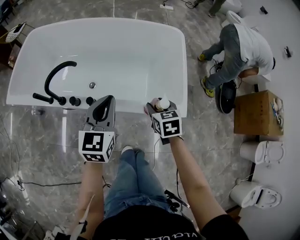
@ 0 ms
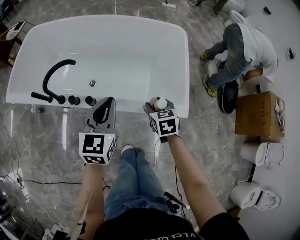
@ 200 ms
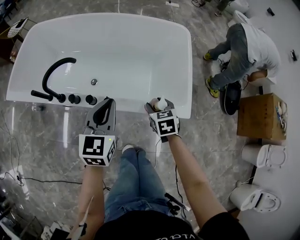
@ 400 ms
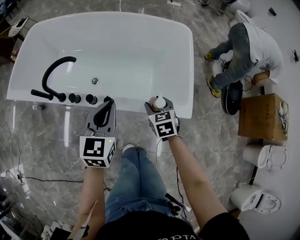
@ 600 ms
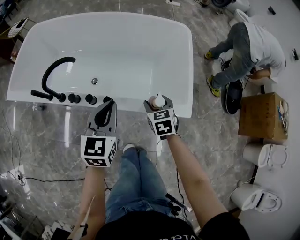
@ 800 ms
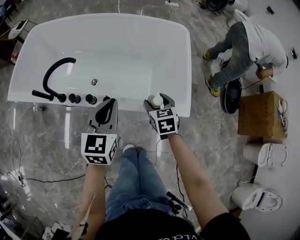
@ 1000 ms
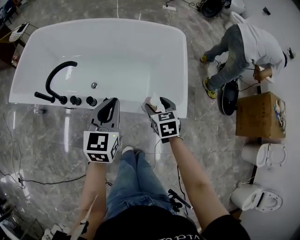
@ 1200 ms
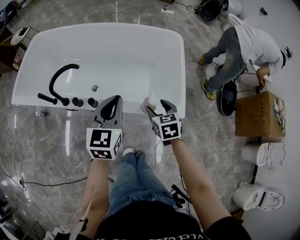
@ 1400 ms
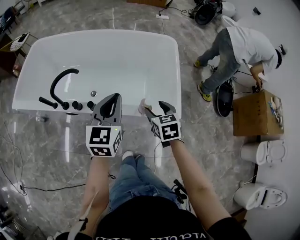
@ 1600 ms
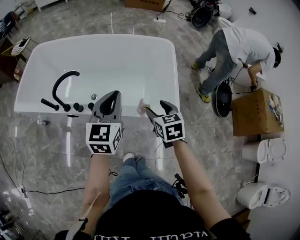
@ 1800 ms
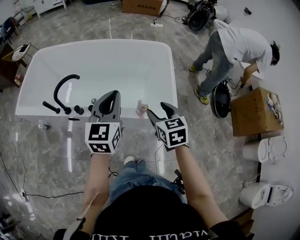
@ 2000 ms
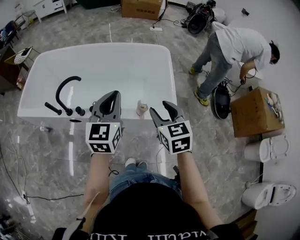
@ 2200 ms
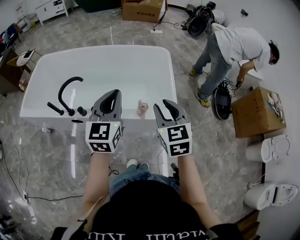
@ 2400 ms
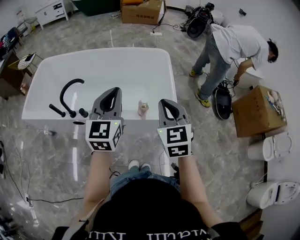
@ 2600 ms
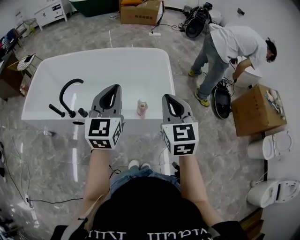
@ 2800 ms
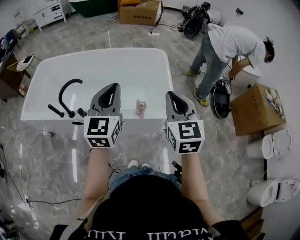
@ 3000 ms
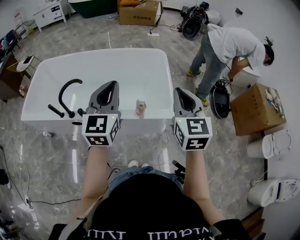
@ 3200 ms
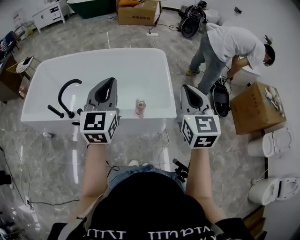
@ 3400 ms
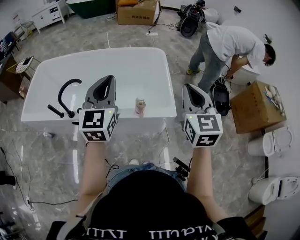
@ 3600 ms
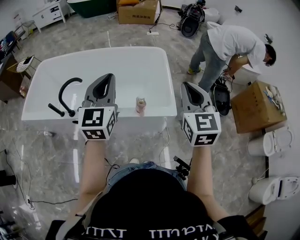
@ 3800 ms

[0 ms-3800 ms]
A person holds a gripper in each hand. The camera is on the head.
1200 ms to 2600 ms: The left gripper is displaced upward and backward by some 20 cm; the right gripper is displaced upward and backward by roughly 30 cm, swivels approximately 30 degrees, and closes up.
2600 ms to 3800 ms: The right gripper moves to the right and upward, about 10 cm.

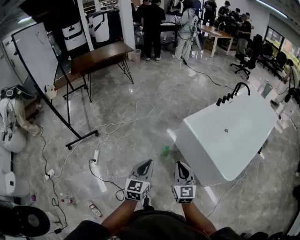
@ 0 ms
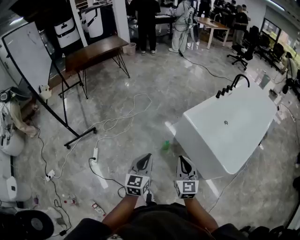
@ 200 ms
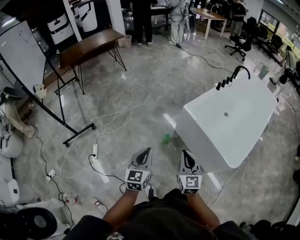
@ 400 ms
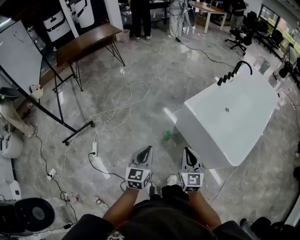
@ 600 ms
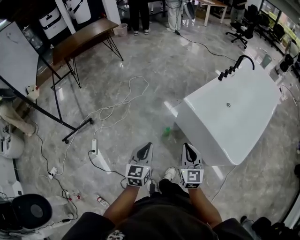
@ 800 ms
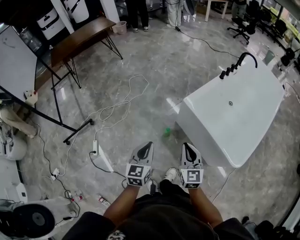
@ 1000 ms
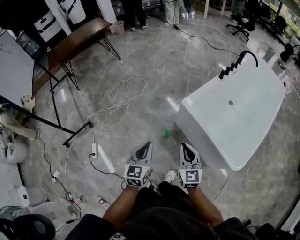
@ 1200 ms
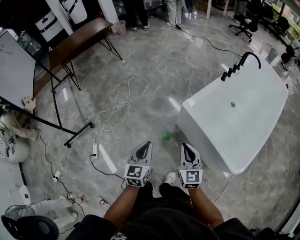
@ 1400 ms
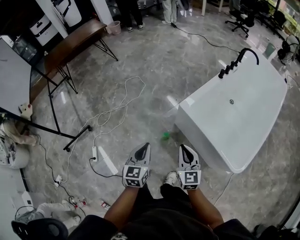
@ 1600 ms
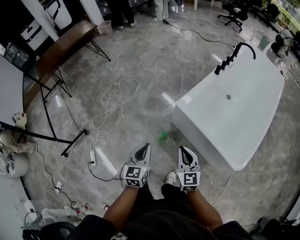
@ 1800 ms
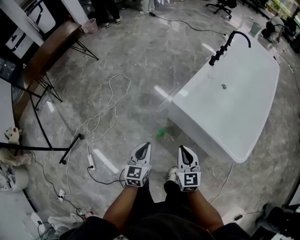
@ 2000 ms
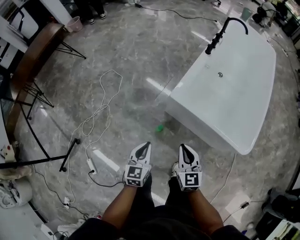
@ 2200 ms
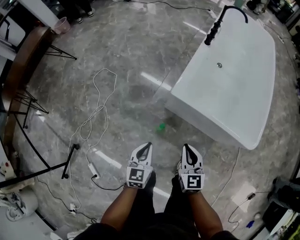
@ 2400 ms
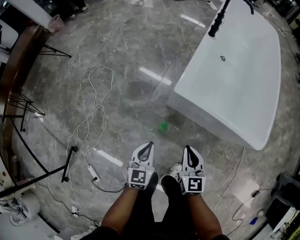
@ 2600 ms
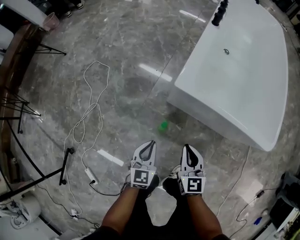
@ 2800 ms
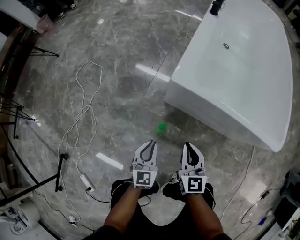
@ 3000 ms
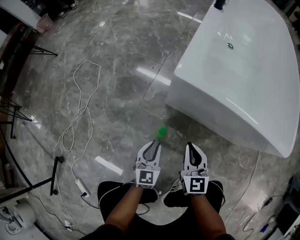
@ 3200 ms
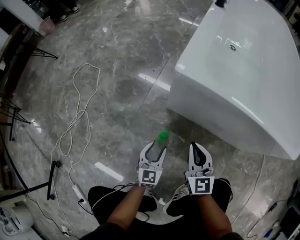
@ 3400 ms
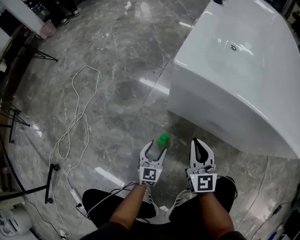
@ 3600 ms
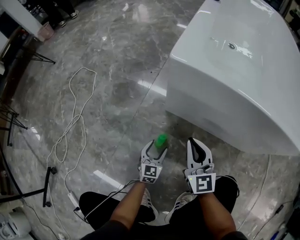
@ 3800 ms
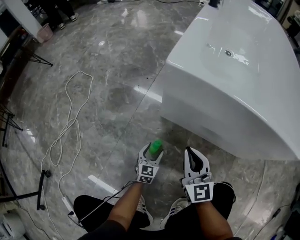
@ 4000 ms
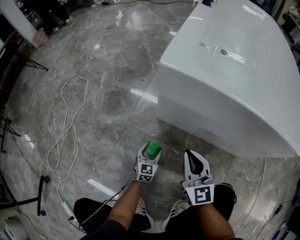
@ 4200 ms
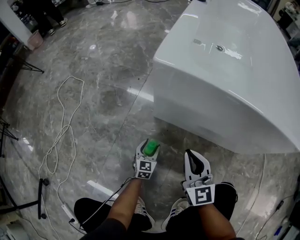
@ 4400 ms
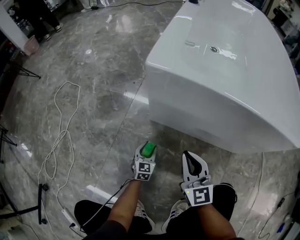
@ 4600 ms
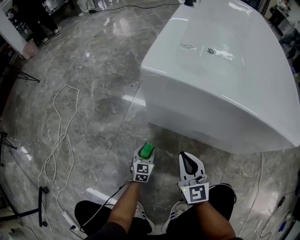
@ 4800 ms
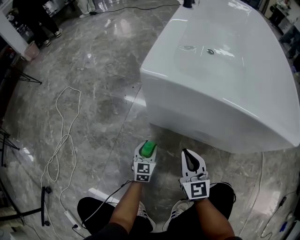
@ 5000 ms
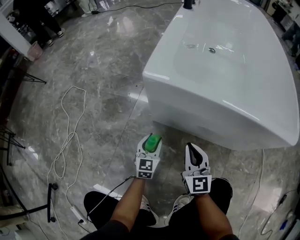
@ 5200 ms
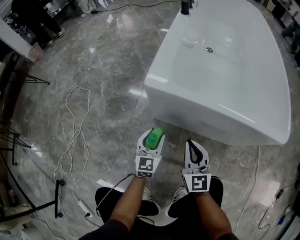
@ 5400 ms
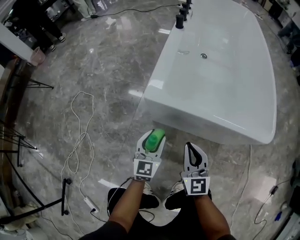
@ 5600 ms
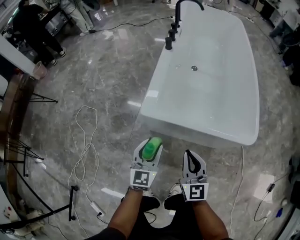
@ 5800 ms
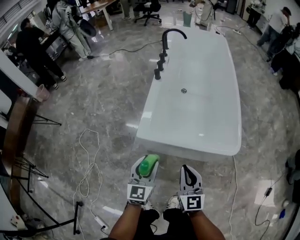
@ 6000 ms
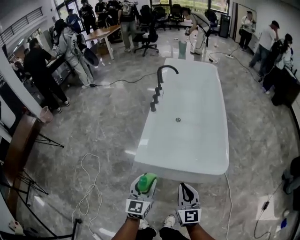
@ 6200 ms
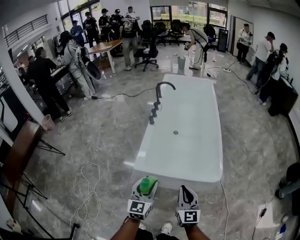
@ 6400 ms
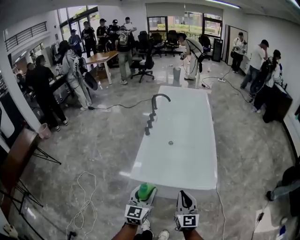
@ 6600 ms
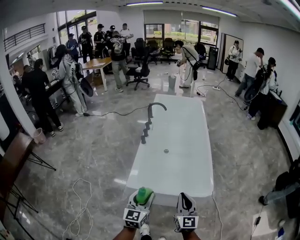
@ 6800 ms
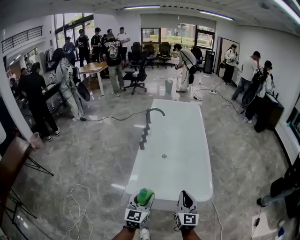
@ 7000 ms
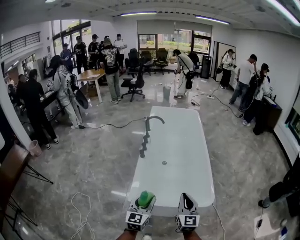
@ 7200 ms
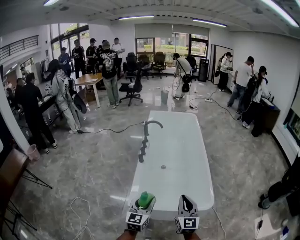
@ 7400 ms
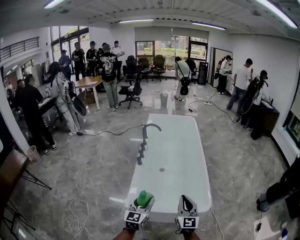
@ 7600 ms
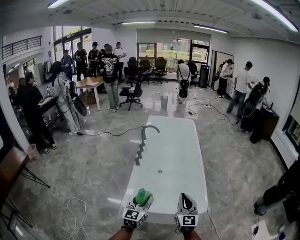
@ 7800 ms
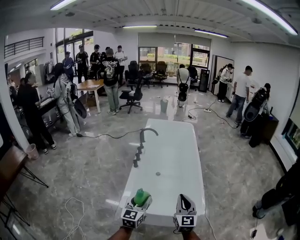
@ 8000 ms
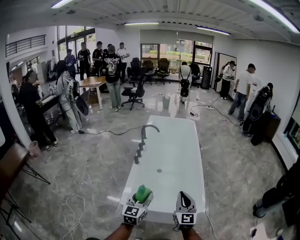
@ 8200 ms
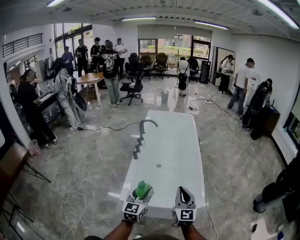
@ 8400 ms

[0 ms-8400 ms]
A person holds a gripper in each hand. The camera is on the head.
0 ms to 1400 ms: The two grippers go about 25 cm forward.
1400 ms to 2800 ms: The grippers both shift downward by approximately 35 cm. The left gripper changes its angle by approximately 30 degrees. The right gripper changes its angle by some 30 degrees.
2800 ms to 4200 ms: The right gripper heads downward, covering some 25 cm. The left gripper goes roughly 50 cm downward, and opens.
4200 ms to 5600 ms: The left gripper goes some 40 cm upward, while the right gripper shifts approximately 25 cm upward.
5600 ms to 7000 ms: The left gripper goes some 50 cm upward, while the right gripper shifts approximately 50 cm upward and to the right, and changes its angle by roughly 20 degrees.
7000 ms to 8400 ms: Both grippers travel together upward, approximately 5 cm.

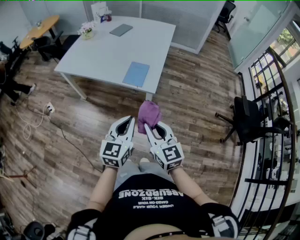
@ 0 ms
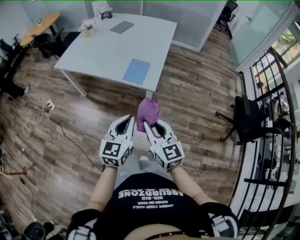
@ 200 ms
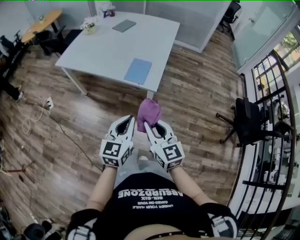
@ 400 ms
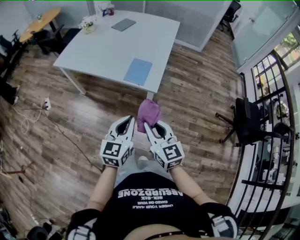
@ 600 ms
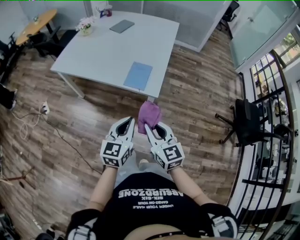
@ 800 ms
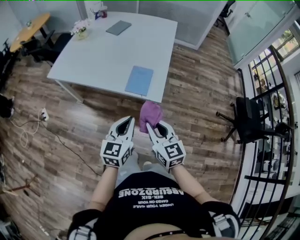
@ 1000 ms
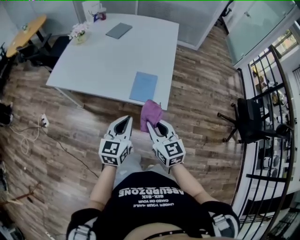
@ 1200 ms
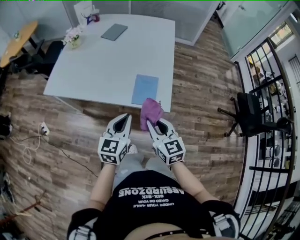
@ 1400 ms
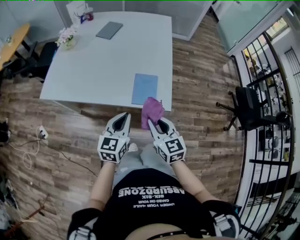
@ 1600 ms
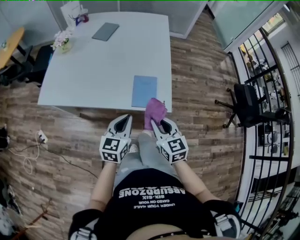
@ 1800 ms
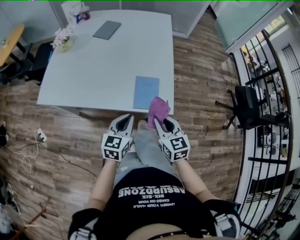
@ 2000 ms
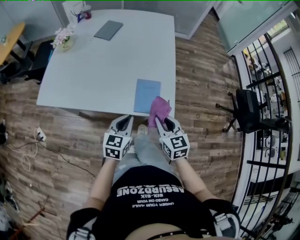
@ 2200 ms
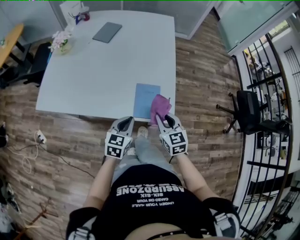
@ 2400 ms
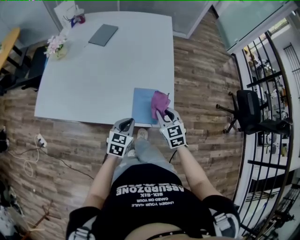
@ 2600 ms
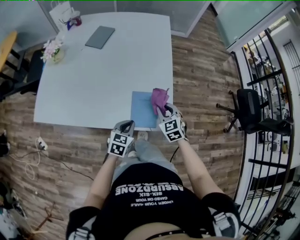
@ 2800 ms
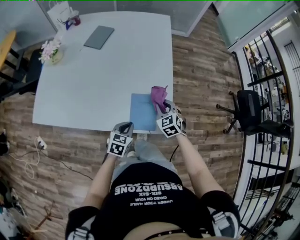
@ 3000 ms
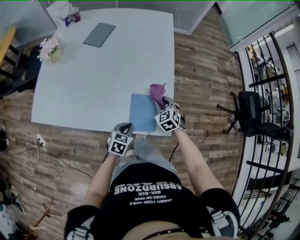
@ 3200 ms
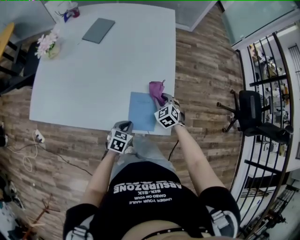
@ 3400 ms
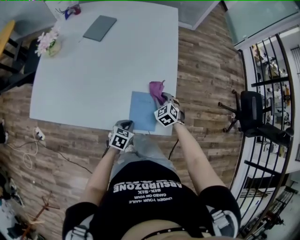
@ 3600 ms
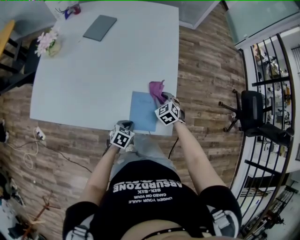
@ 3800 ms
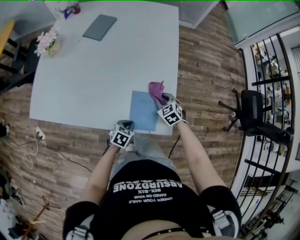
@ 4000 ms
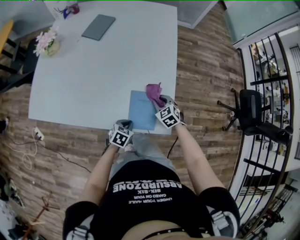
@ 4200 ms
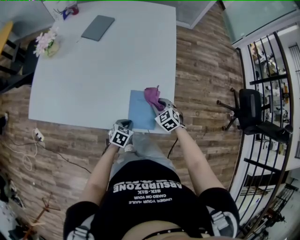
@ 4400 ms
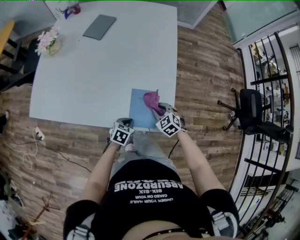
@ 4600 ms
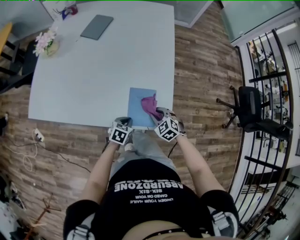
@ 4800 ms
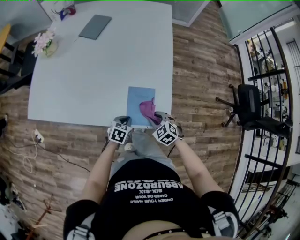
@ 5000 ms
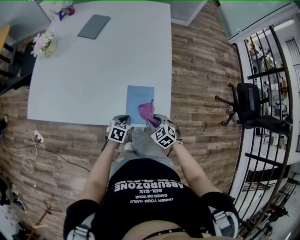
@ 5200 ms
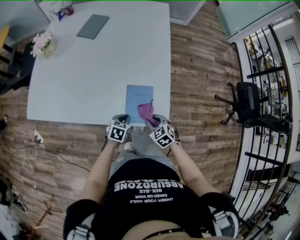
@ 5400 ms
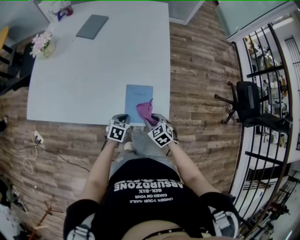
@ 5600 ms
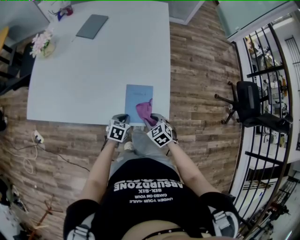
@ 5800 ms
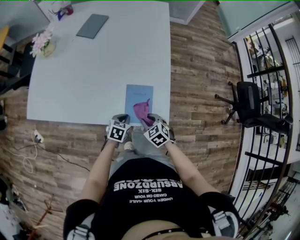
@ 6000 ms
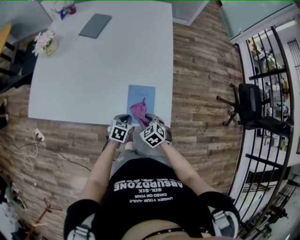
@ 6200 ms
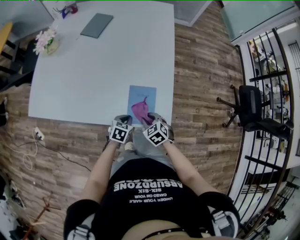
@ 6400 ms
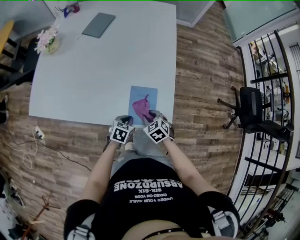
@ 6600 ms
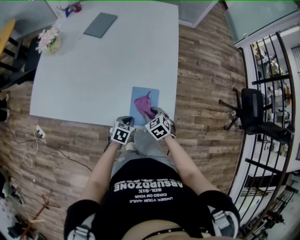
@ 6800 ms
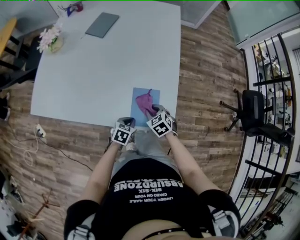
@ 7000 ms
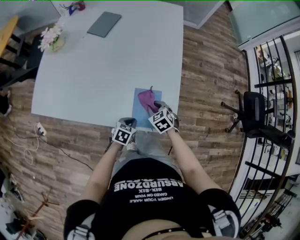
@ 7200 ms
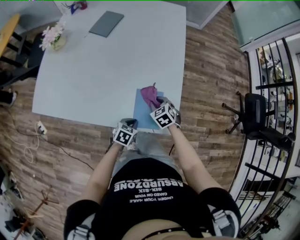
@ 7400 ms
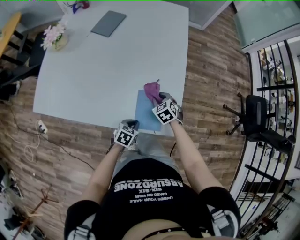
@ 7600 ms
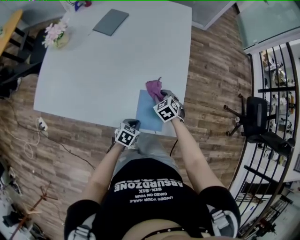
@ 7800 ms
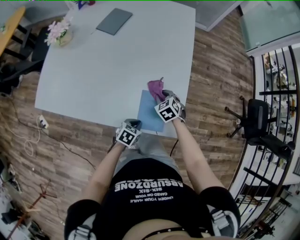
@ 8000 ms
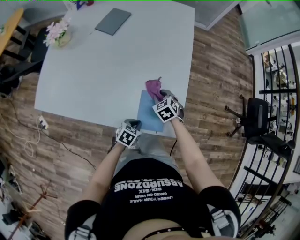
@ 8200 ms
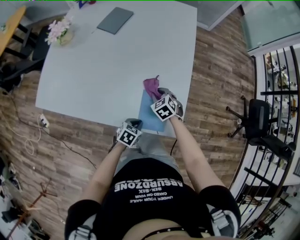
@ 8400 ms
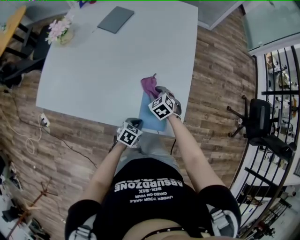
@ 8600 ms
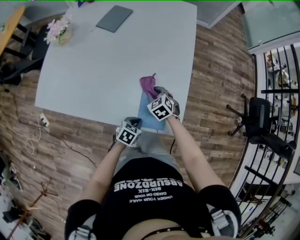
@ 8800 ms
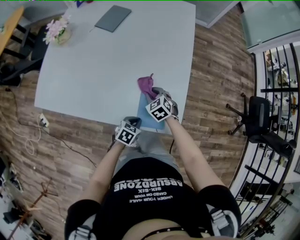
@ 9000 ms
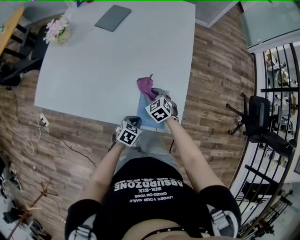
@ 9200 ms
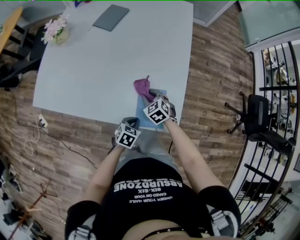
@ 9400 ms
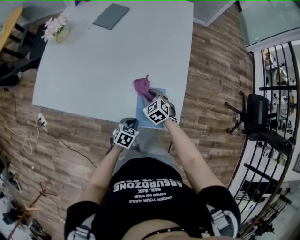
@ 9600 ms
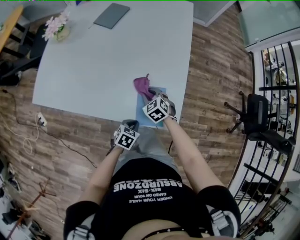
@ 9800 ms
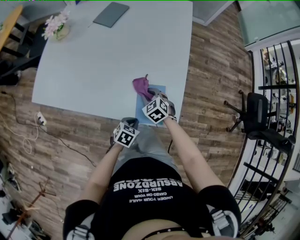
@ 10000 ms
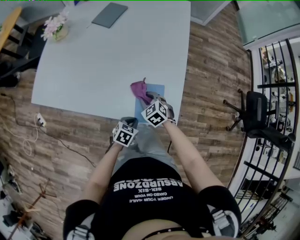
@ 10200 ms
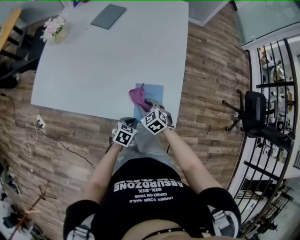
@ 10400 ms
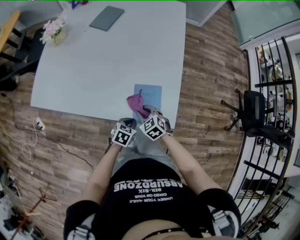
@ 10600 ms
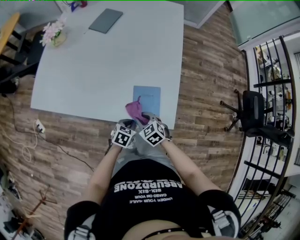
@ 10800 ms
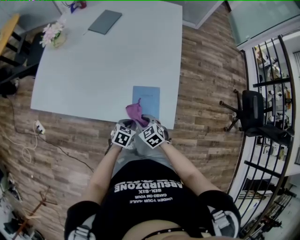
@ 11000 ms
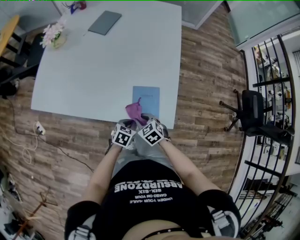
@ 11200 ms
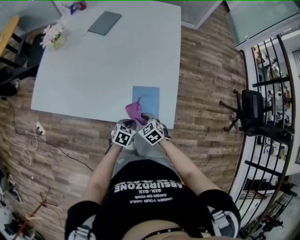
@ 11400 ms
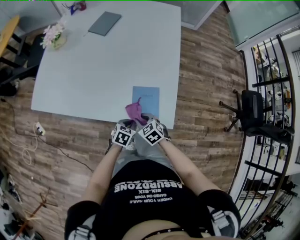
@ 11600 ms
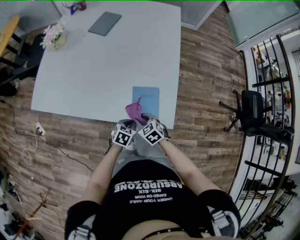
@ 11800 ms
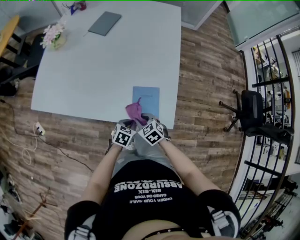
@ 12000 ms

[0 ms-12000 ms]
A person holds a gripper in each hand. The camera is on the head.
0 ms to 1600 ms: The two grippers go roughly 30 cm forward and to the left.
1600 ms to 3000 ms: The right gripper is displaced forward and downward by approximately 30 cm, and changes its angle by roughly 30 degrees. The left gripper heads downward and forward, covering about 20 cm, and swivels approximately 30 degrees.
3000 ms to 4400 ms: Both grippers move downward, roughly 10 cm.
4400 ms to 6000 ms: The right gripper travels backward by roughly 10 cm.
6000 ms to 7600 ms: The right gripper goes roughly 15 cm forward.
7600 ms to 9000 ms: The right gripper is displaced to the left by approximately 5 cm.
9000 ms to 10400 ms: The right gripper travels backward by approximately 10 cm.
10400 ms to 12000 ms: The right gripper heads backward, covering about 5 cm.
